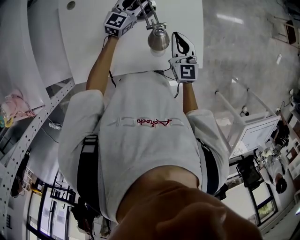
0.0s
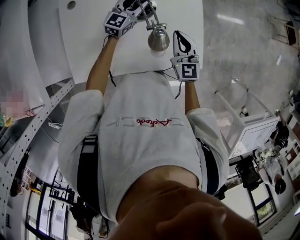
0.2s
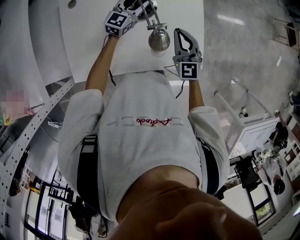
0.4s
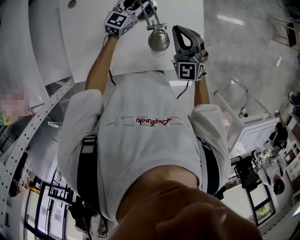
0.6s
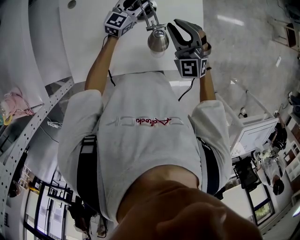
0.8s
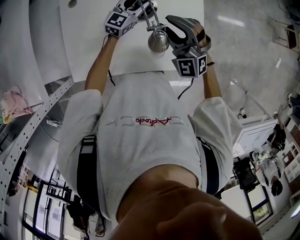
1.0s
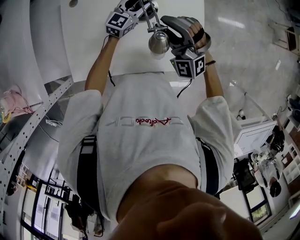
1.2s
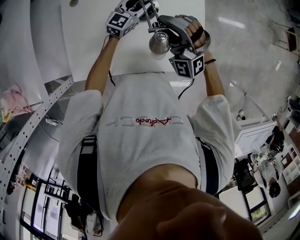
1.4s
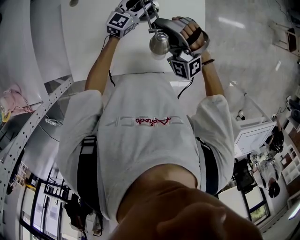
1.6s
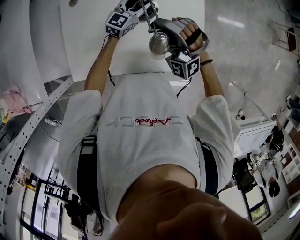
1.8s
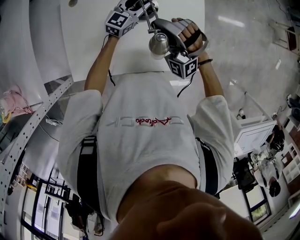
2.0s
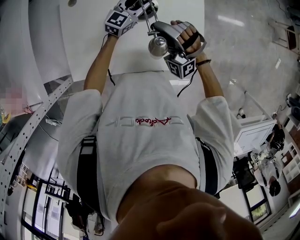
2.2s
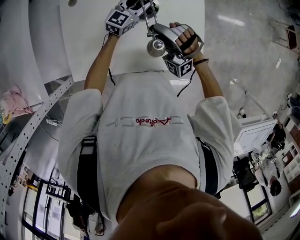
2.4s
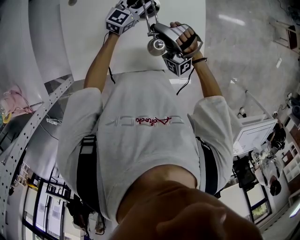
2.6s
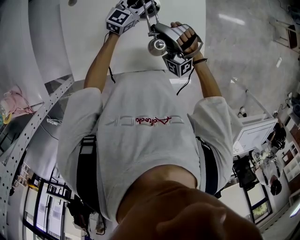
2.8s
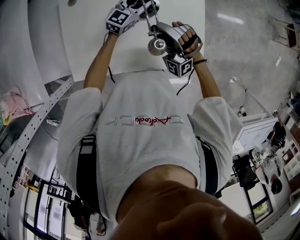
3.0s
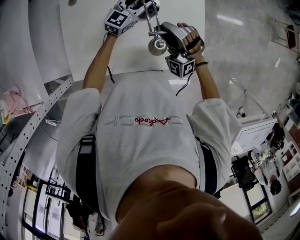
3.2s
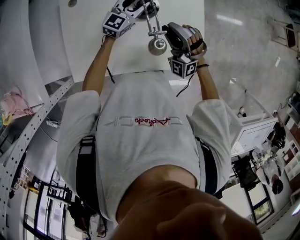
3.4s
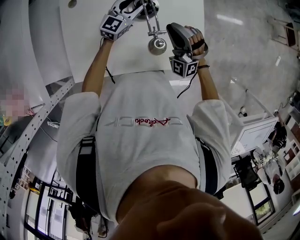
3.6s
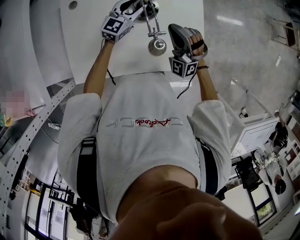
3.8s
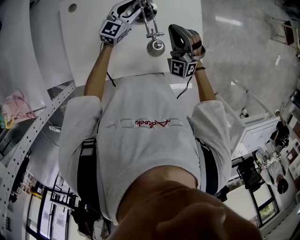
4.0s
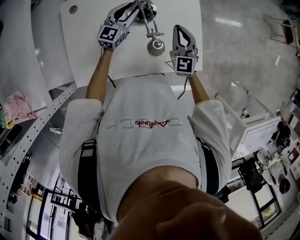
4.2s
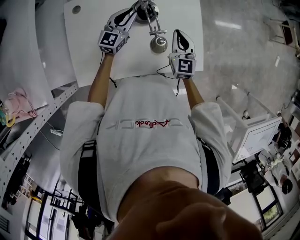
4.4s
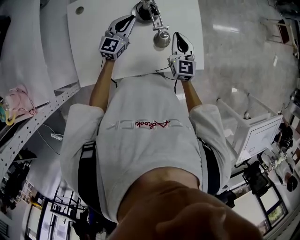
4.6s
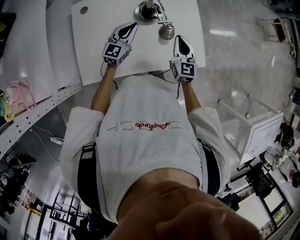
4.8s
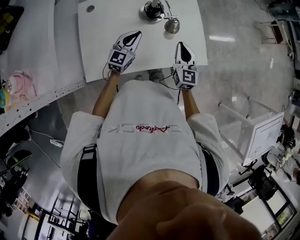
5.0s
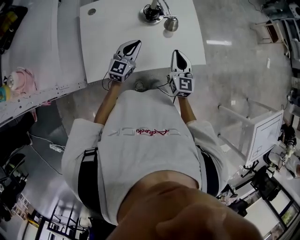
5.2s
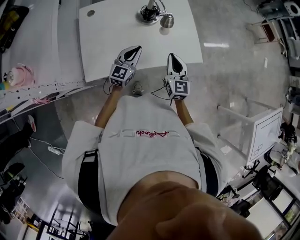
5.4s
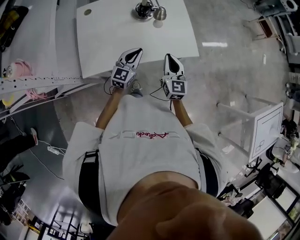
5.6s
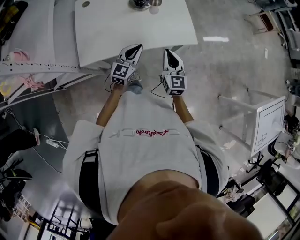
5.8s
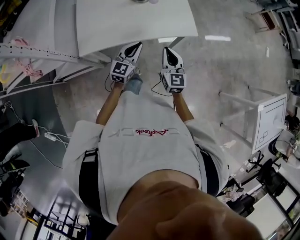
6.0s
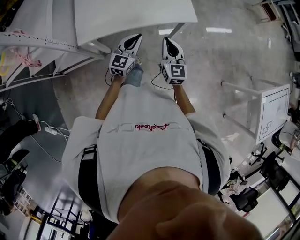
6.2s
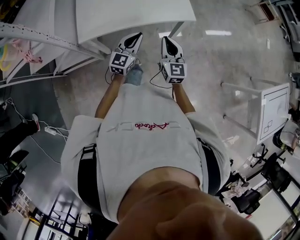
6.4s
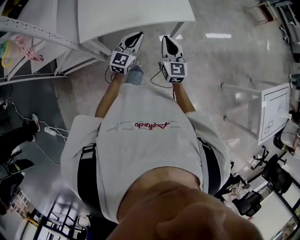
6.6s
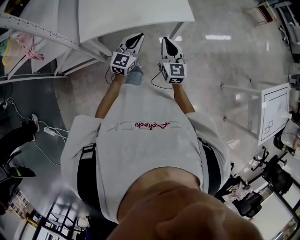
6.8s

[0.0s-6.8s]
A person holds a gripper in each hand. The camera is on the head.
0.0s to 1.4s: The right gripper shifts some 15 cm upward and to the left, rolls counterclockwise, seen from behind, by approximately 60 degrees, and opens its fingers.
2.8s to 4.0s: The right gripper shifts about 5 cm to the right, swivels roughly 30 degrees, and closes up.
4.0s to 5.4s: Both grippers travel together backward, some 25 cm. The left gripper closes its fingers. Meanwhile the right gripper rolls clockwise, seen from behind, by roughly 50 degrees.
5.4s to 6.8s: The left gripper travels backward and to the right by approximately 25 cm. The right gripper moves backward, about 20 cm.

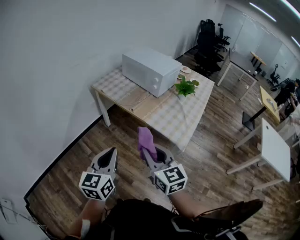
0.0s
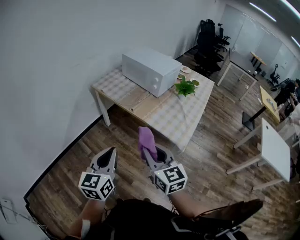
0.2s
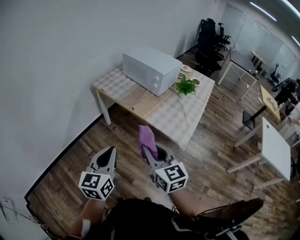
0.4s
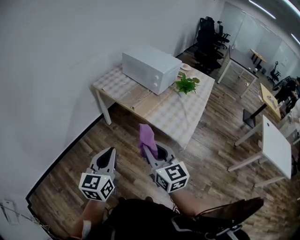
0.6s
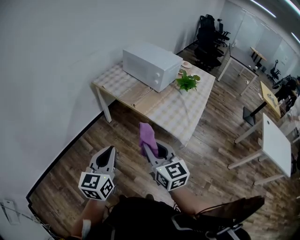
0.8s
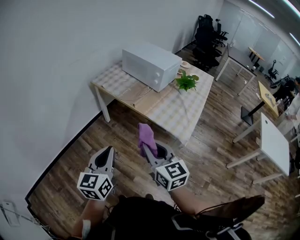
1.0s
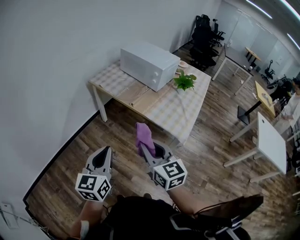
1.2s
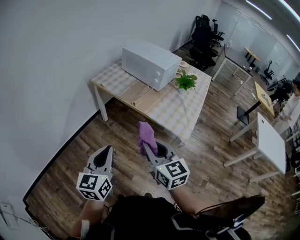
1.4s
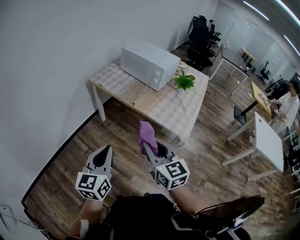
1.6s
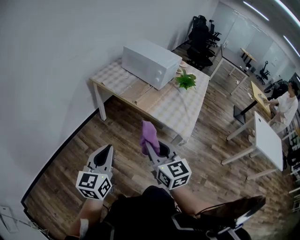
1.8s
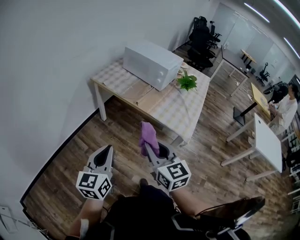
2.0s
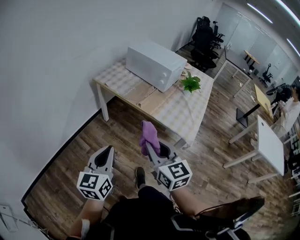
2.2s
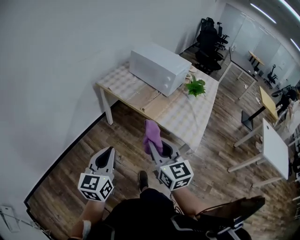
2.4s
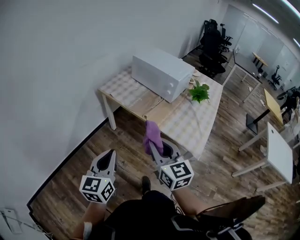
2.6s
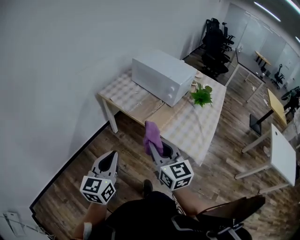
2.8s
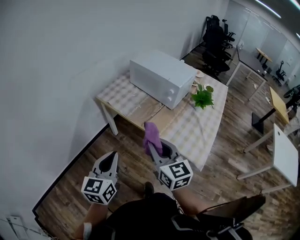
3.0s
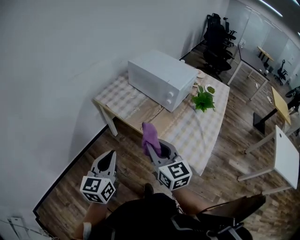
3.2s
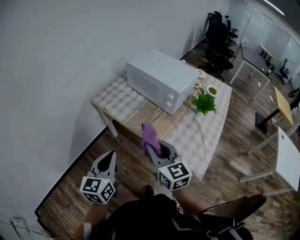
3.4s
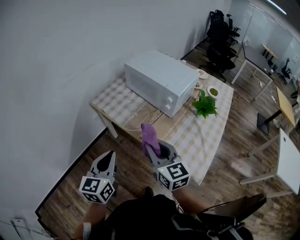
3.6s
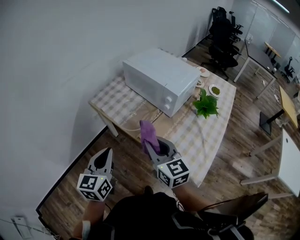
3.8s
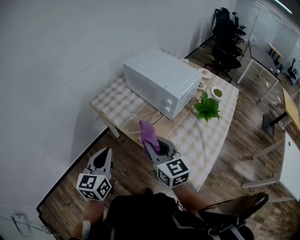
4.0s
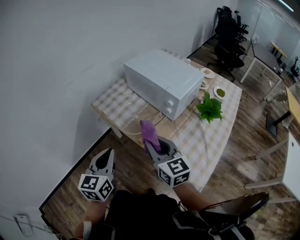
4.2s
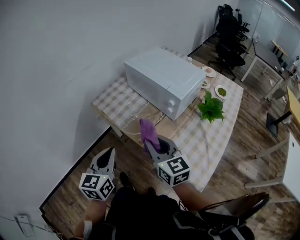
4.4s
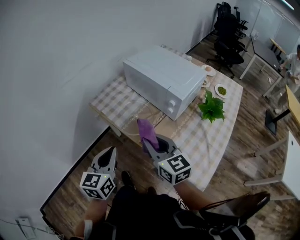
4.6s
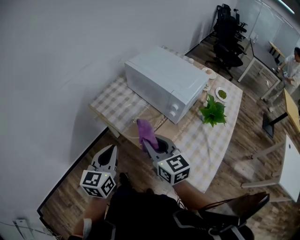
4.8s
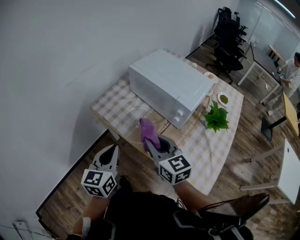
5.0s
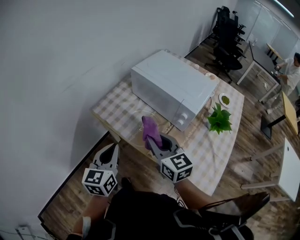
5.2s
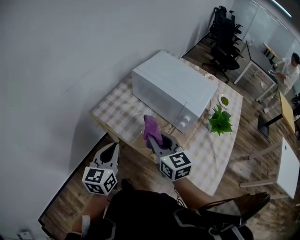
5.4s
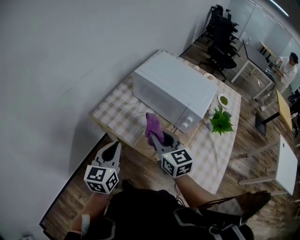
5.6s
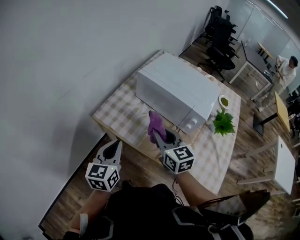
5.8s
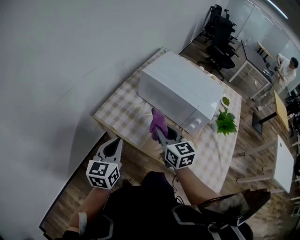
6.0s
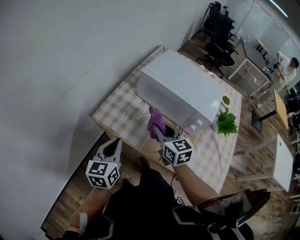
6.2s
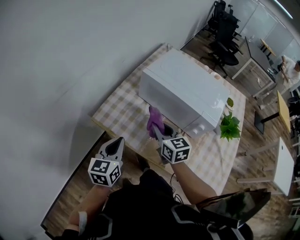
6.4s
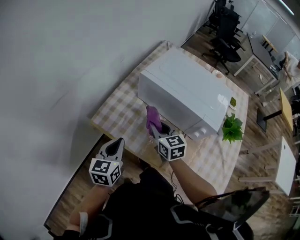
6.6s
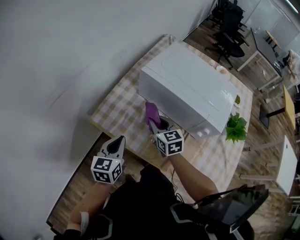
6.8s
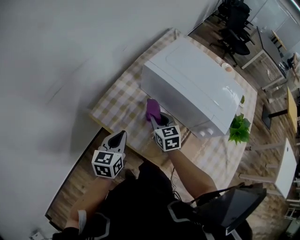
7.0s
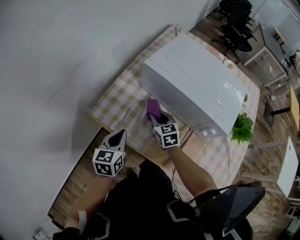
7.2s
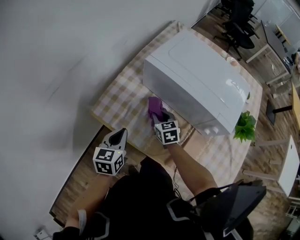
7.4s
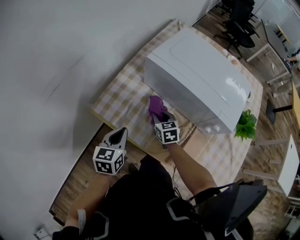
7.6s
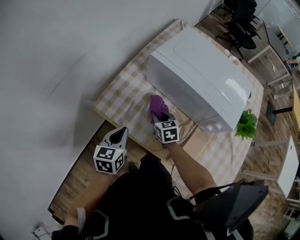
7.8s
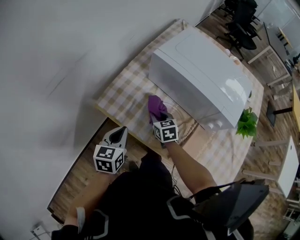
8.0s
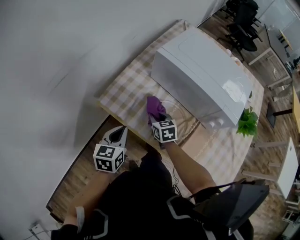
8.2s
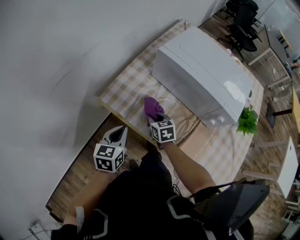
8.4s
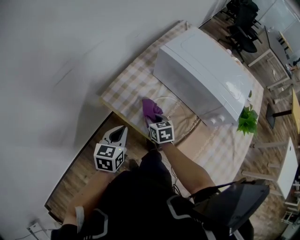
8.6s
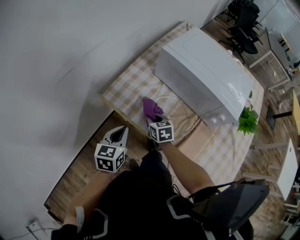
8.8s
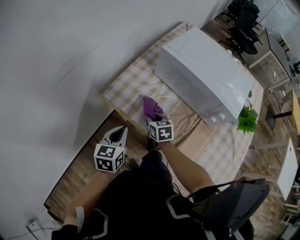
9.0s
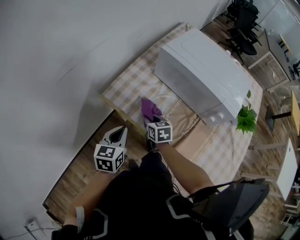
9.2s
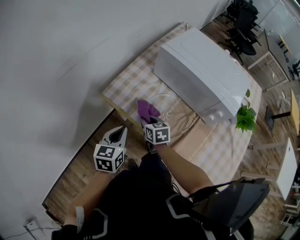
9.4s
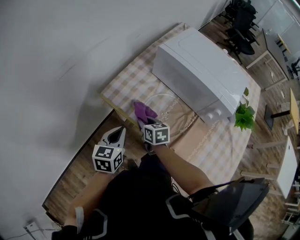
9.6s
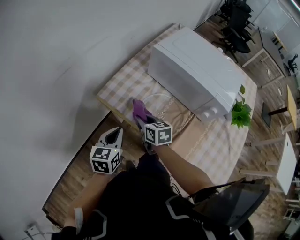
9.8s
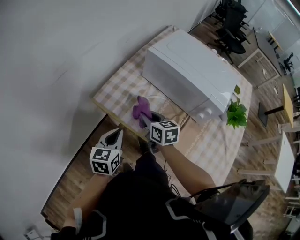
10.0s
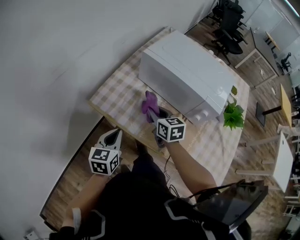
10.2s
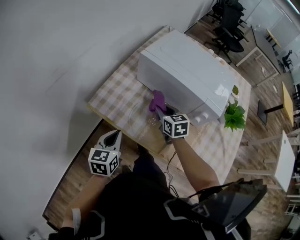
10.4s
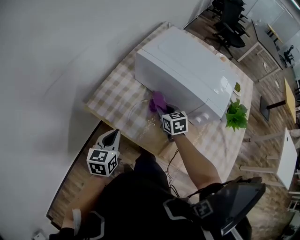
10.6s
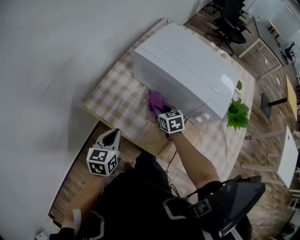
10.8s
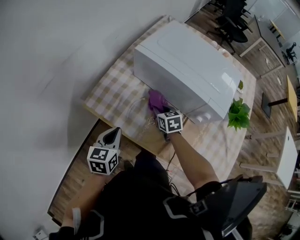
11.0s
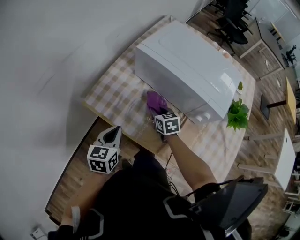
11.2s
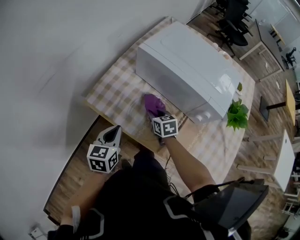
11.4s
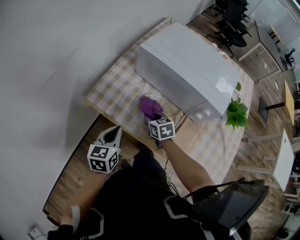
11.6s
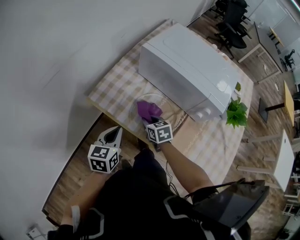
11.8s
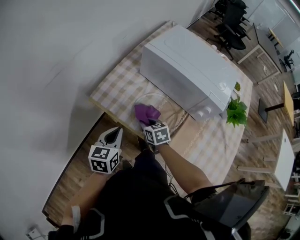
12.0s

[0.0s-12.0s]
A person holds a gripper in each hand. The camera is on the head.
0.0s to 1.6s: The grippers both shift to the left by approximately 5 cm.
1.6s to 3.0s: Both grippers travel together forward, some 20 cm.
3.0s to 4.4s: Both grippers move forward and to the right, some 20 cm.
4.4s to 6.0s: The two grippers go approximately 25 cm forward and to the left.
6.0s to 7.6s: The right gripper travels downward and forward by approximately 25 cm, and rotates approximately 20 degrees. The left gripper travels downward and forward by some 15 cm.
7.6s to 9.0s: The left gripper goes approximately 5 cm backward. Meanwhile the right gripper goes about 10 cm to the left and backward.
9.0s to 10.4s: The right gripper heads to the right and upward, covering some 15 cm.
10.4s to 12.0s: The right gripper shifts about 15 cm downward, to the left and backward.

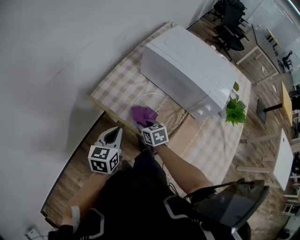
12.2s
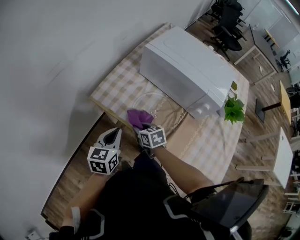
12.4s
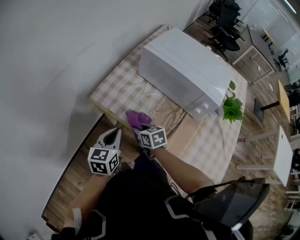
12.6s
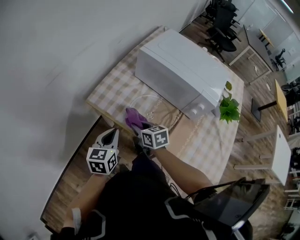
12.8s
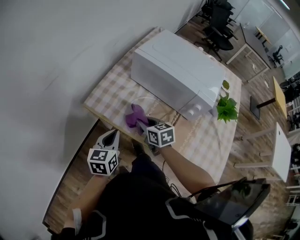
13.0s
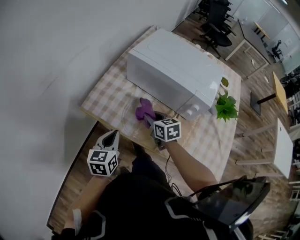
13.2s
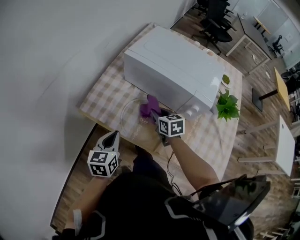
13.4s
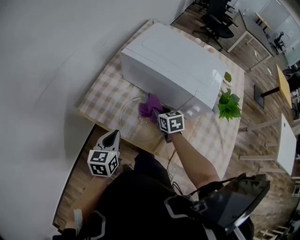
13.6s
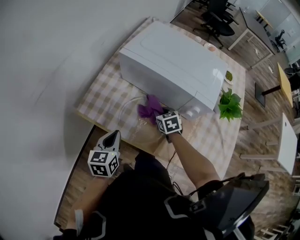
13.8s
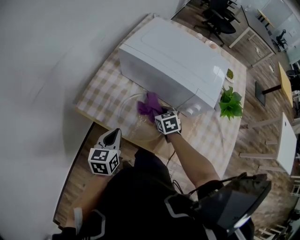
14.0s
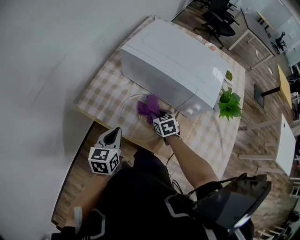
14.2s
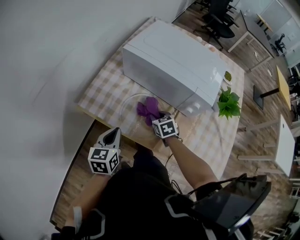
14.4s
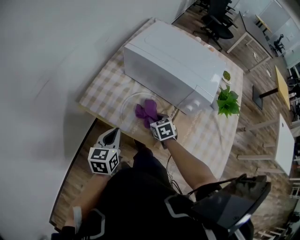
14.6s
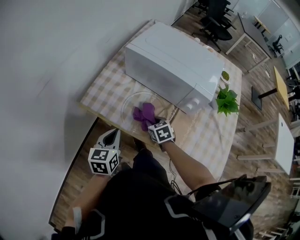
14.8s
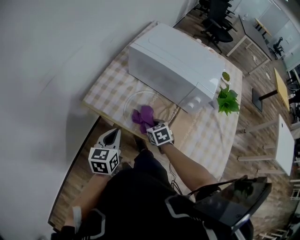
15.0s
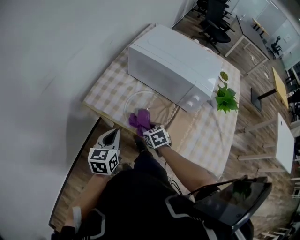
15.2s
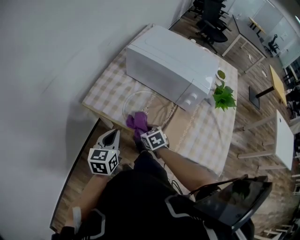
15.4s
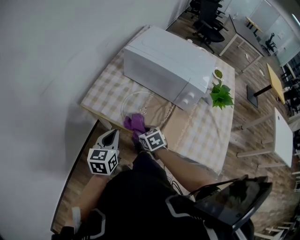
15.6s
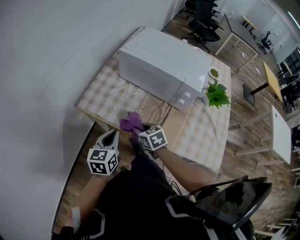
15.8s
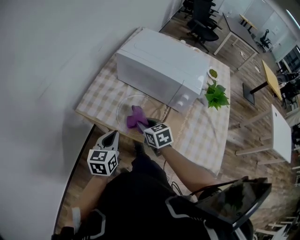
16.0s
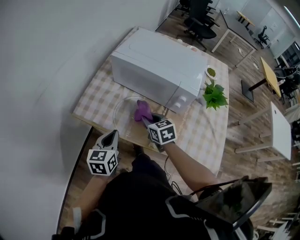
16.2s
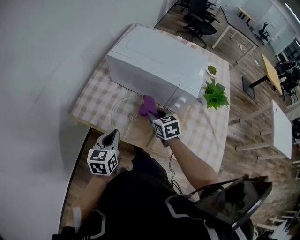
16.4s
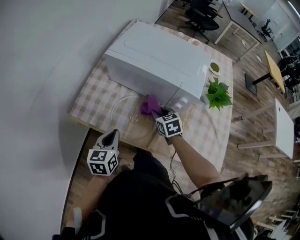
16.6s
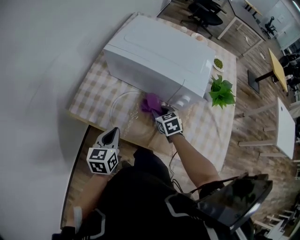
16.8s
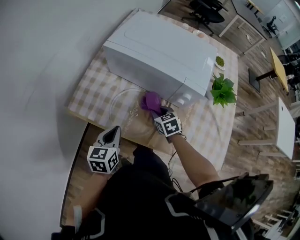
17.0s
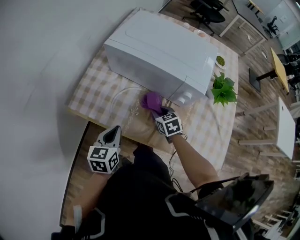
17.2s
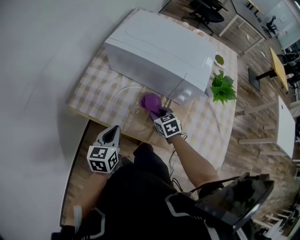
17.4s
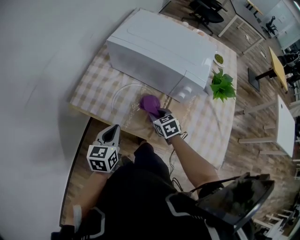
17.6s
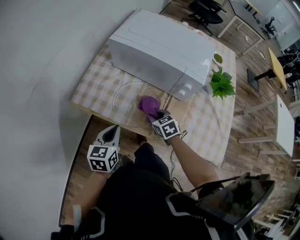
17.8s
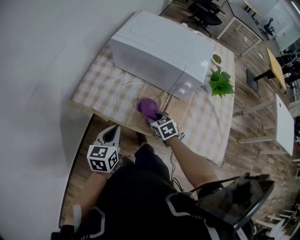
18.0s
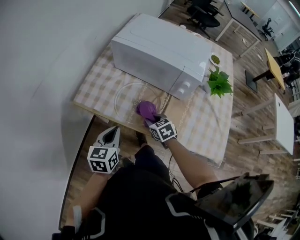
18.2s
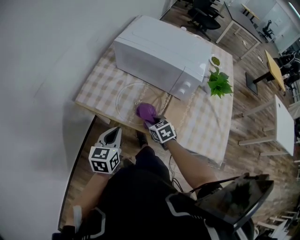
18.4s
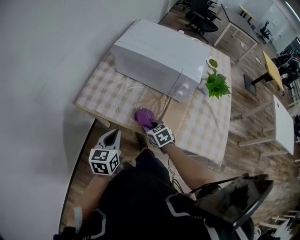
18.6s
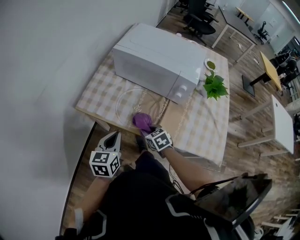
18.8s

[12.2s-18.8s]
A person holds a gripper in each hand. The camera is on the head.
12.2s to 13.8s: The right gripper shifts approximately 20 cm to the right and forward, while the left gripper heads to the right, covering about 5 cm.
13.8s to 15.4s: The left gripper travels backward by approximately 5 cm; the right gripper travels backward and to the left by approximately 20 cm.
15.4s to 17.2s: The right gripper heads to the right and forward, covering some 15 cm; the left gripper shifts roughly 10 cm to the right and forward.
17.2s to 18.8s: The right gripper shifts roughly 15 cm backward and to the left, while the left gripper travels backward by about 10 cm.
